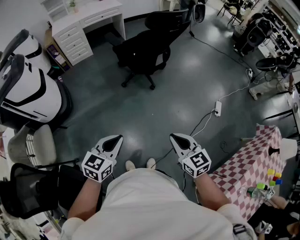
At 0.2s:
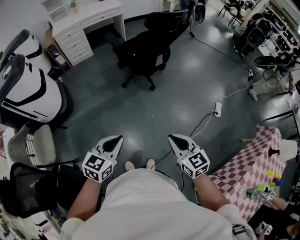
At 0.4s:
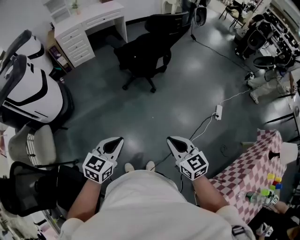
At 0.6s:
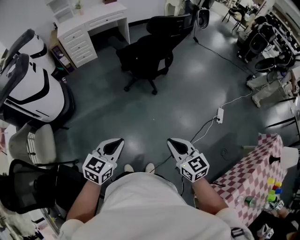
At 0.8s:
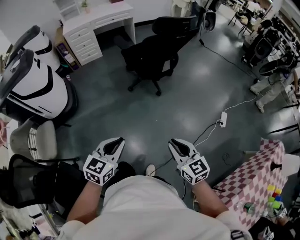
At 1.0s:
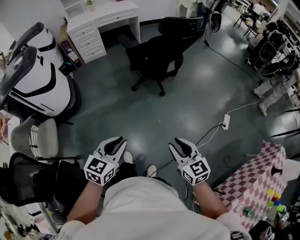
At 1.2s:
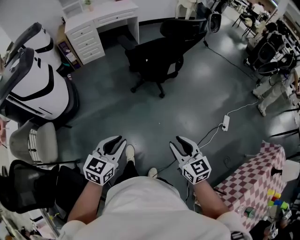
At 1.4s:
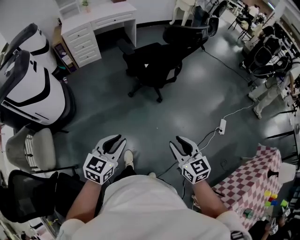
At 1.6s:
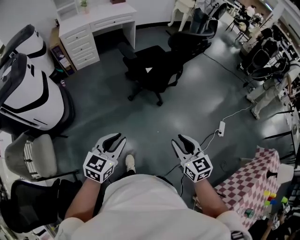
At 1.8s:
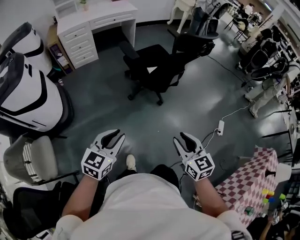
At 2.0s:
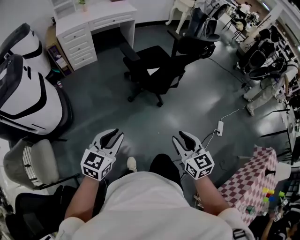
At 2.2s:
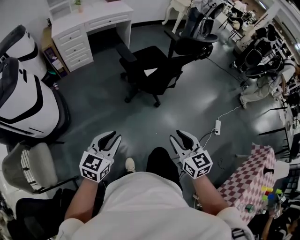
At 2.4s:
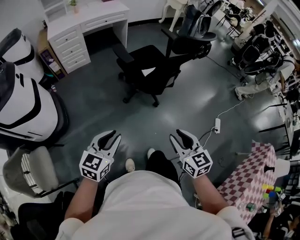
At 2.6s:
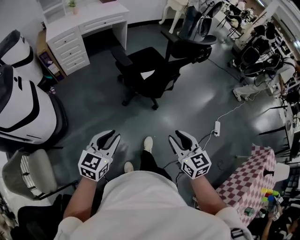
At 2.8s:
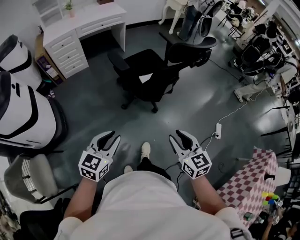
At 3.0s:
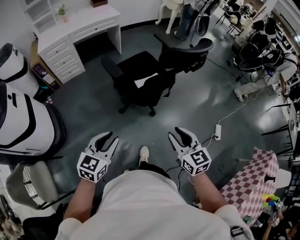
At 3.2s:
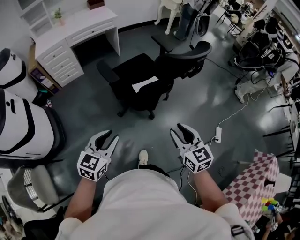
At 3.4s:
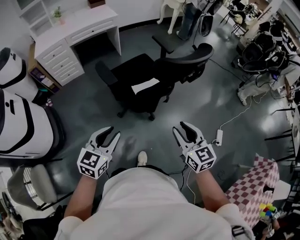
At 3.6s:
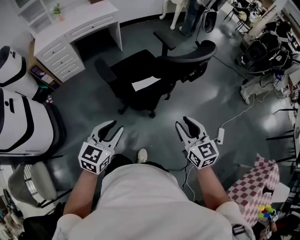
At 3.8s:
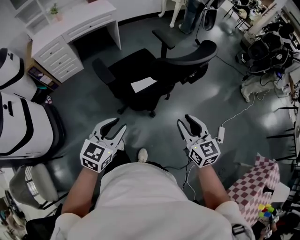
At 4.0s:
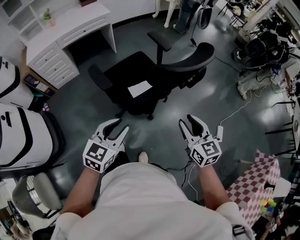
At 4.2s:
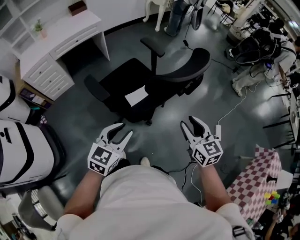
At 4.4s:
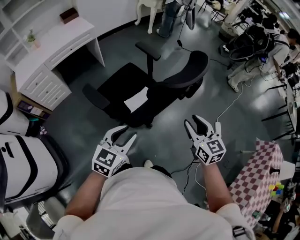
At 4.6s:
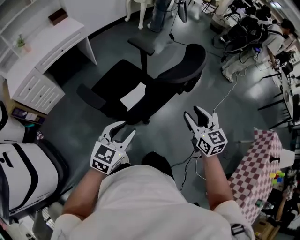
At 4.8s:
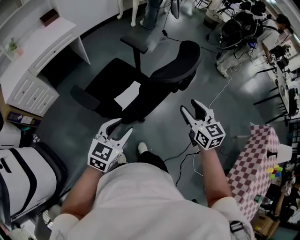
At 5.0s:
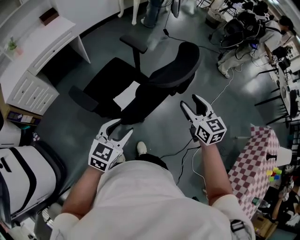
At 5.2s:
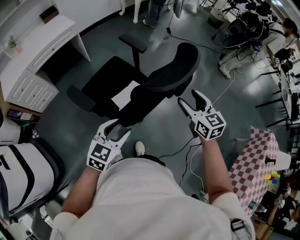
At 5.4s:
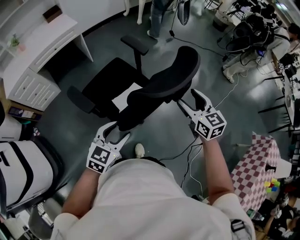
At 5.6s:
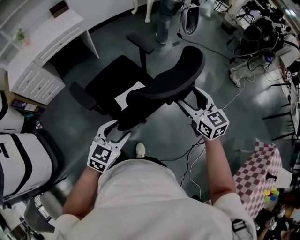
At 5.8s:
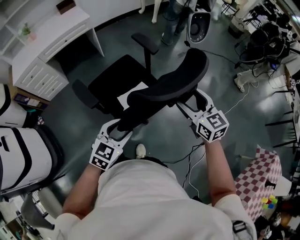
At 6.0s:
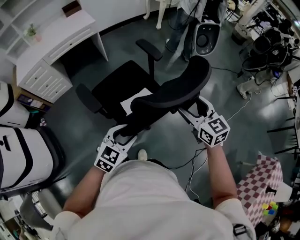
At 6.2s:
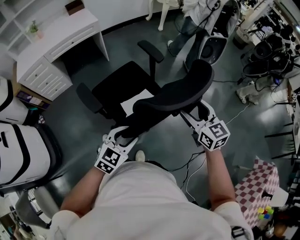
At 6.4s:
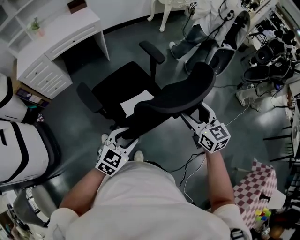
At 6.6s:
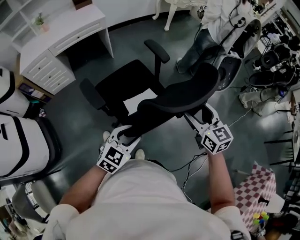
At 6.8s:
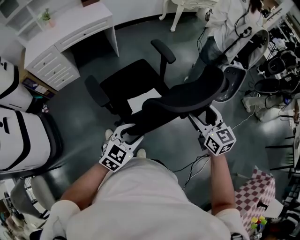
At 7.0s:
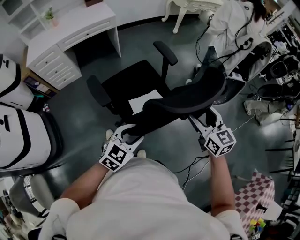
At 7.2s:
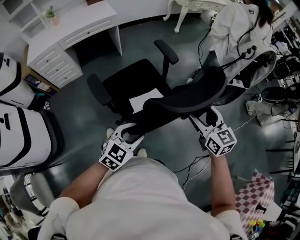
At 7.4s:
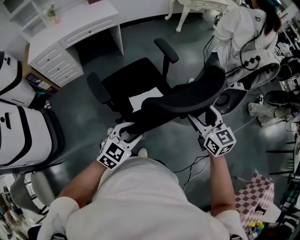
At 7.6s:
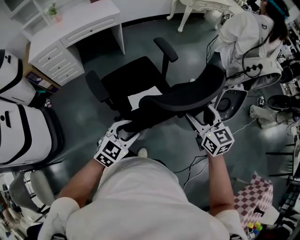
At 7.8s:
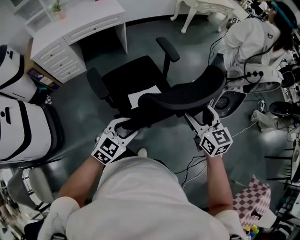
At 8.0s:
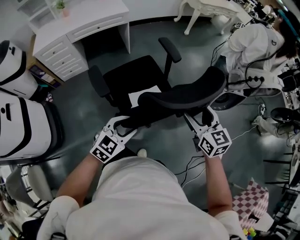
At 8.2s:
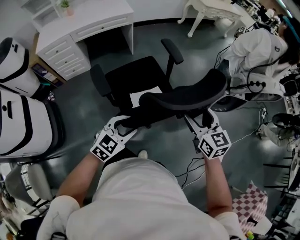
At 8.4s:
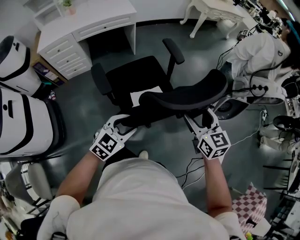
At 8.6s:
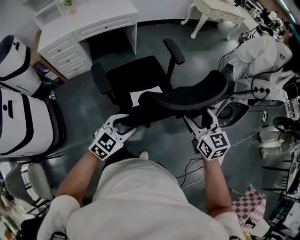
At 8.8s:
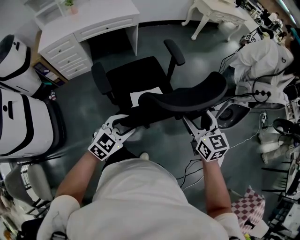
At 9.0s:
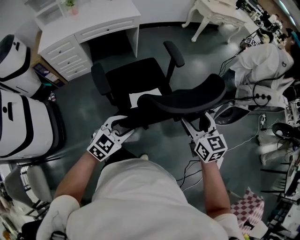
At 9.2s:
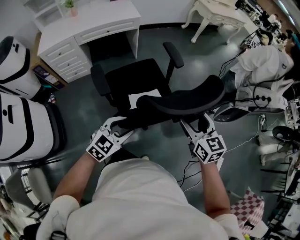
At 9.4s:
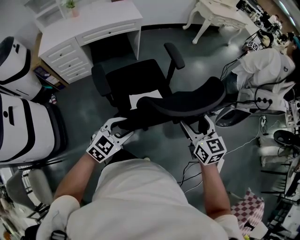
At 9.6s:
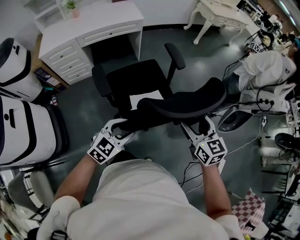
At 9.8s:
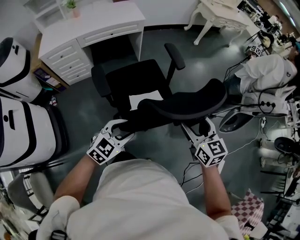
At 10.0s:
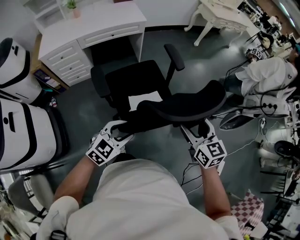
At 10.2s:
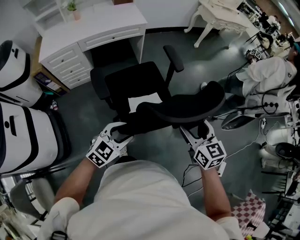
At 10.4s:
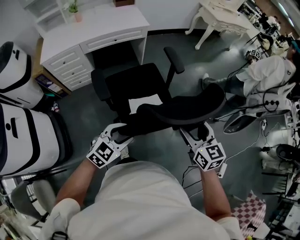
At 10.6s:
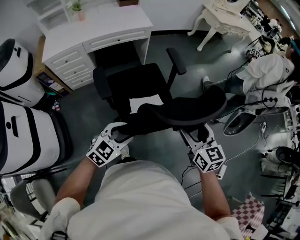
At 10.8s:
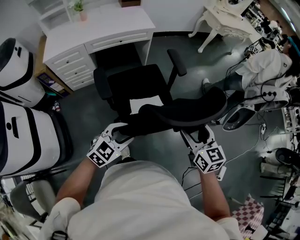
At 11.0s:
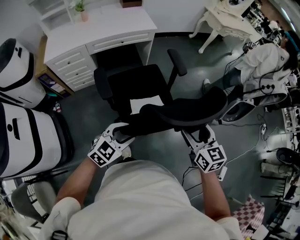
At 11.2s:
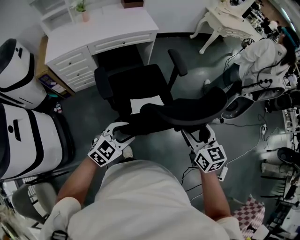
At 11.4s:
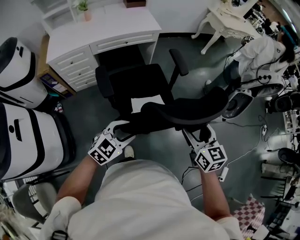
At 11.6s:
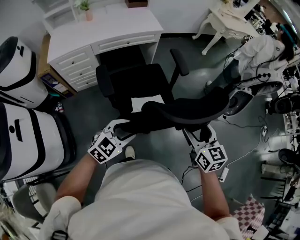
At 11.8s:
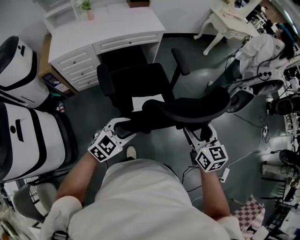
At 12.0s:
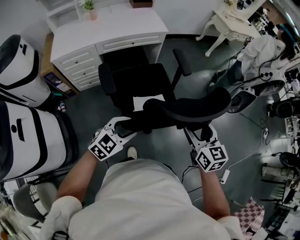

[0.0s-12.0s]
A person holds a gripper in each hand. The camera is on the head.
0.0s to 1.6s: Both grippers travel together forward and to the left, approximately 15 cm. The right gripper opens its fingers.
1.6s to 3.0s: The grippers both shift forward by approximately 20 cm.
3.0s to 4.4s: The grippers both shift forward by about 25 cm.
4.4s to 6.0s: The right gripper is displaced forward by about 15 cm, and opens, while the left gripper heads forward, to the right and downward, covering about 15 cm.
6.0s to 7.6s: The grippers make only small movements.
7.6s to 9.0s: The right gripper goes approximately 10 cm to the left. Meanwhile the left gripper heads to the left and forward, covering some 15 cm.
9.0s to 10.4s: Both grippers travel together to the left, some 10 cm.
10.4s to 12.0s: Both grippers move to the left, approximately 10 cm.

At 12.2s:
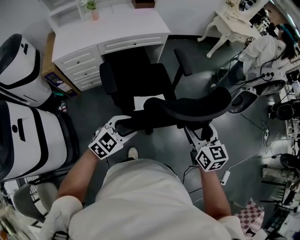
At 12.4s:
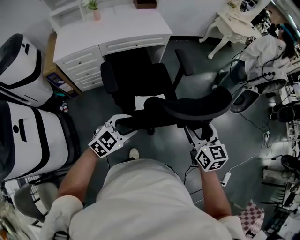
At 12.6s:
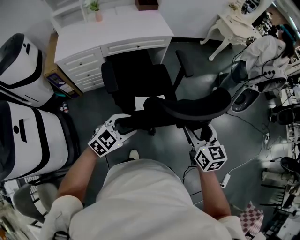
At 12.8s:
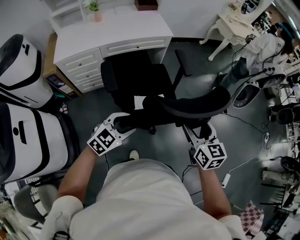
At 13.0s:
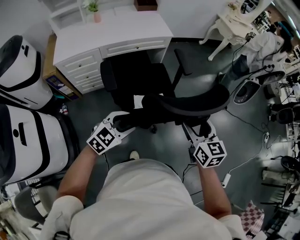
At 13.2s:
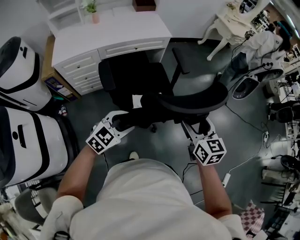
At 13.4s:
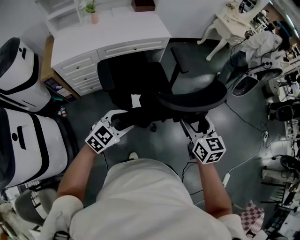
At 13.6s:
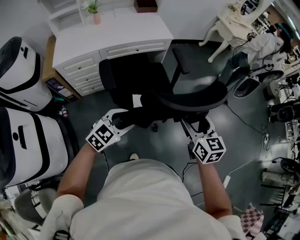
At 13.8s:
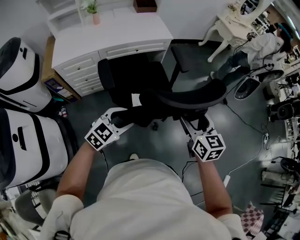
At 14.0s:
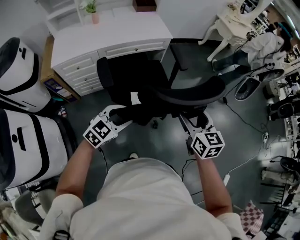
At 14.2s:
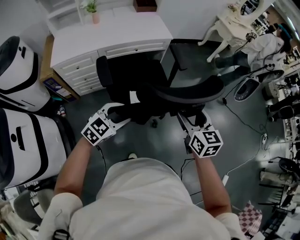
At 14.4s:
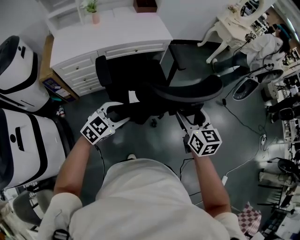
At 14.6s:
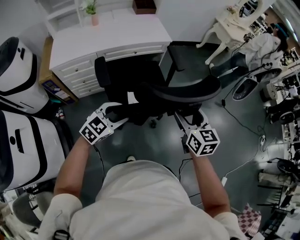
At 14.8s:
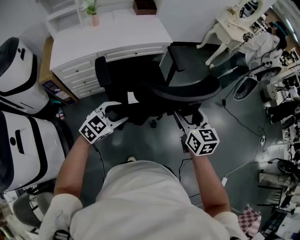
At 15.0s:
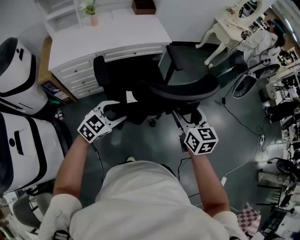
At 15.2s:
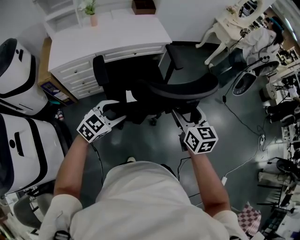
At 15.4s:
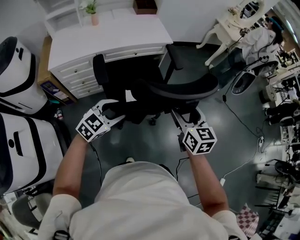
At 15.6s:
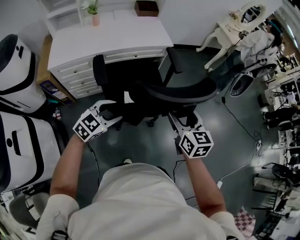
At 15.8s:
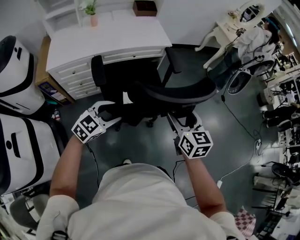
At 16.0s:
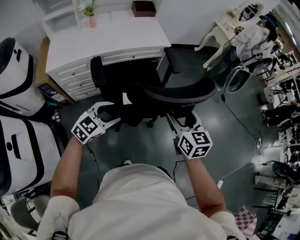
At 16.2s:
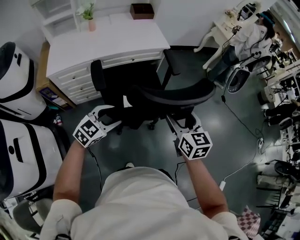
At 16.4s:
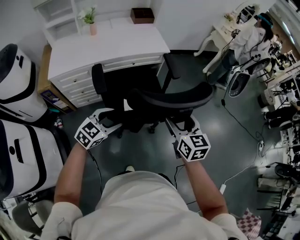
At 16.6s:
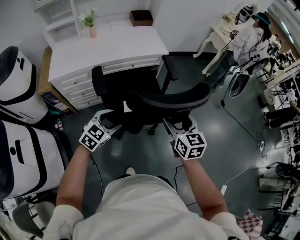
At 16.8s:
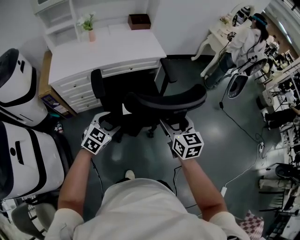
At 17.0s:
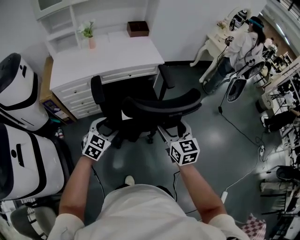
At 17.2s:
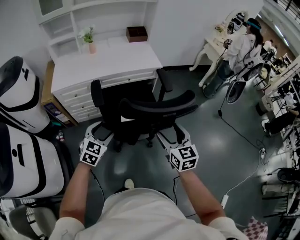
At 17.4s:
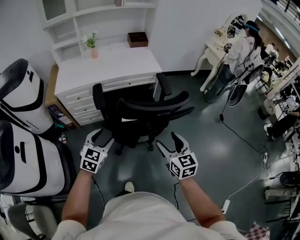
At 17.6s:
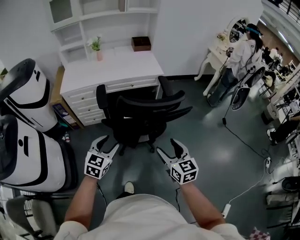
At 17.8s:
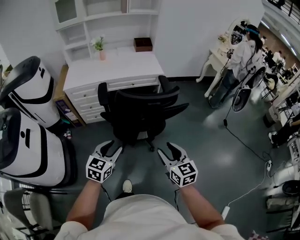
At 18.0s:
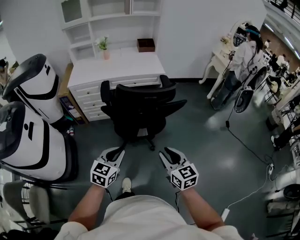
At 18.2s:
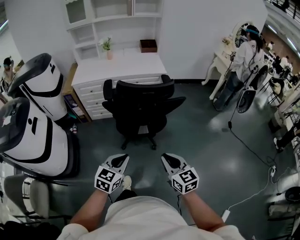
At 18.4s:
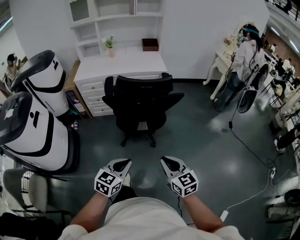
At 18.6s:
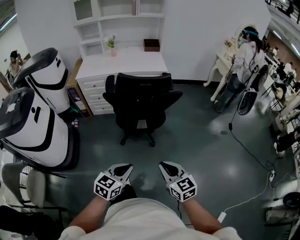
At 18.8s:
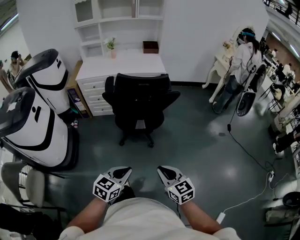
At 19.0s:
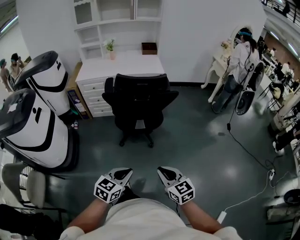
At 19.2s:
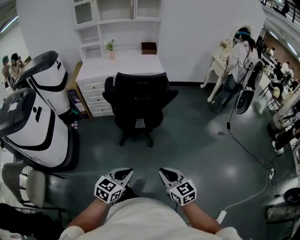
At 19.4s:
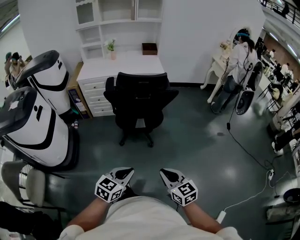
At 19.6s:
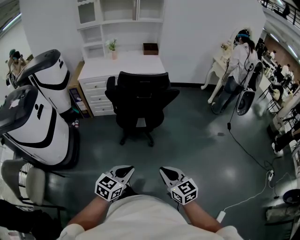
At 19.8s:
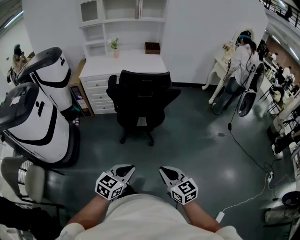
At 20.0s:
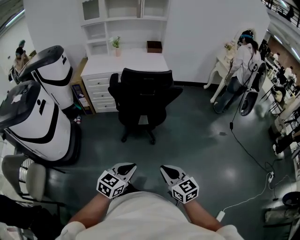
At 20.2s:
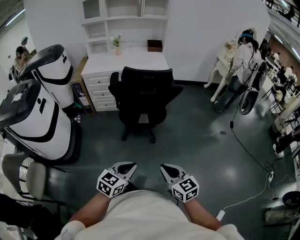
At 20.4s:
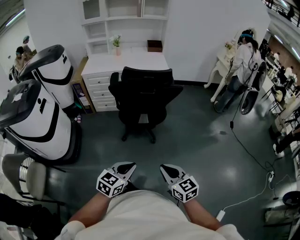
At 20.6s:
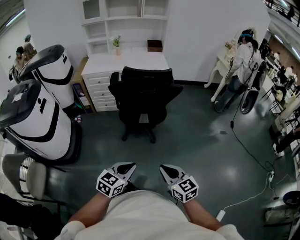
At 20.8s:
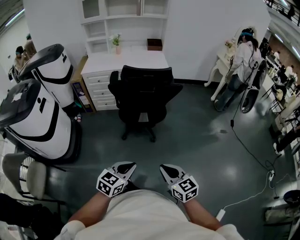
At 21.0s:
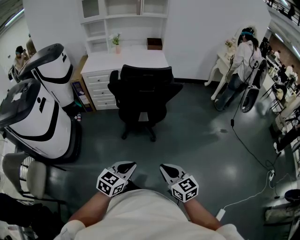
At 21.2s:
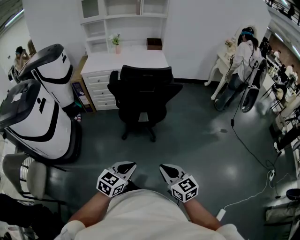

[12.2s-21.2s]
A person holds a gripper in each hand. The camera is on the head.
12.2s to 13.8s: Both grippers move forward and to the left, about 10 cm.
13.8s to 15.2s: The grippers both shift to the left by roughly 5 cm.
15.2s to 16.6s: The grippers stay close to where they were, moving slightly.
16.6s to 18.2s: Both grippers move backward and to the right, about 30 cm. The right gripper changes its angle by some 20 degrees, and closes. Meanwhile the left gripper rotates roughly 30 degrees, and closes up.
18.2s to 19.8s: The grippers both shift backward by approximately 15 cm.
19.8s to 21.2s: Both grippers stay put.

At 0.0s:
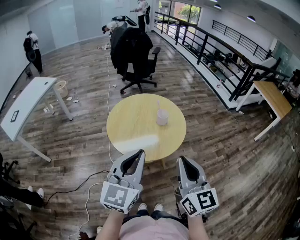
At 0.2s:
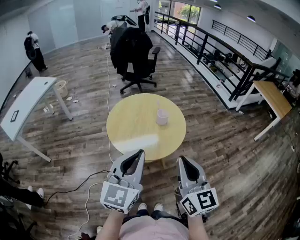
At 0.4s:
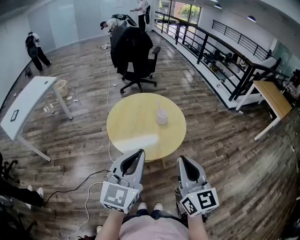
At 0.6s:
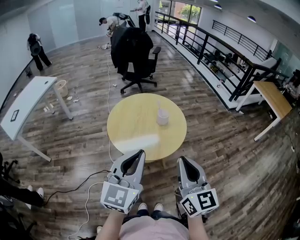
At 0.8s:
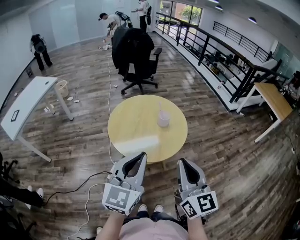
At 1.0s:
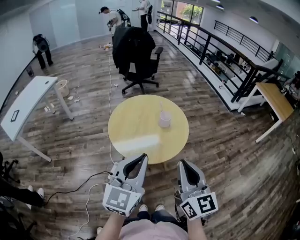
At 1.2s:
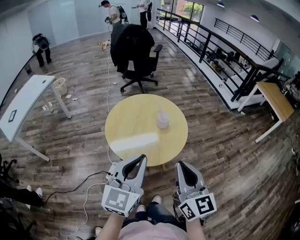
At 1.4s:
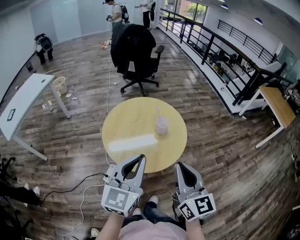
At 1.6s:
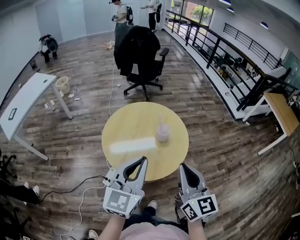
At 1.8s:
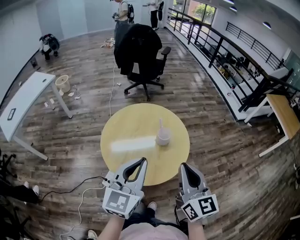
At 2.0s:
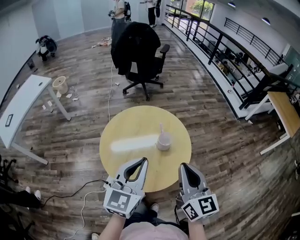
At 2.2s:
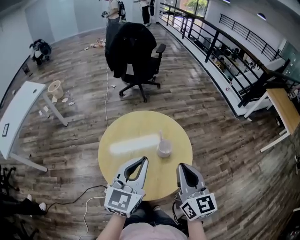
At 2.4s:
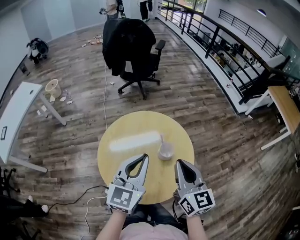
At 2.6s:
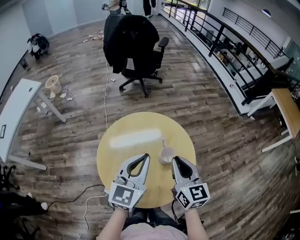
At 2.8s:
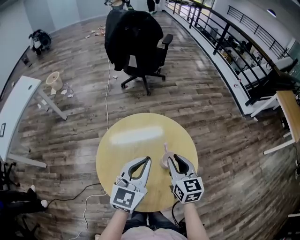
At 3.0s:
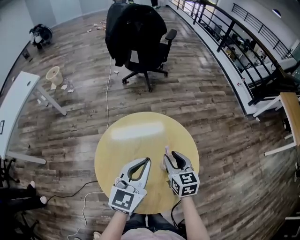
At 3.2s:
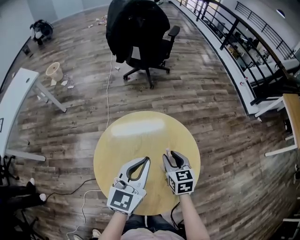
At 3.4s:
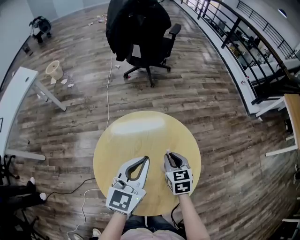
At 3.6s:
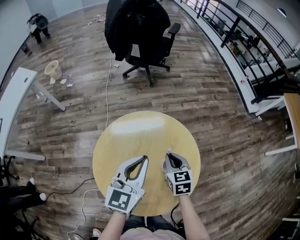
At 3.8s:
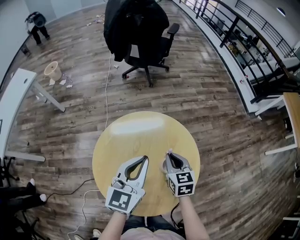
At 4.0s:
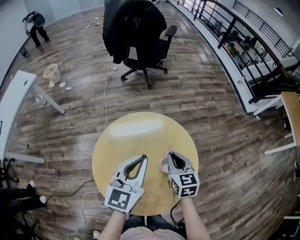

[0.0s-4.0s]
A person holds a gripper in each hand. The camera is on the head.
0.0s to 1.4s: Both grippers move forward, roughly 10 cm.
1.4s to 2.6s: Both grippers move forward, about 25 cm.
2.6s to 4.0s: The left gripper travels forward by some 5 cm. The right gripper heads downward and forward, covering roughly 15 cm, and opens, then closes once more.
